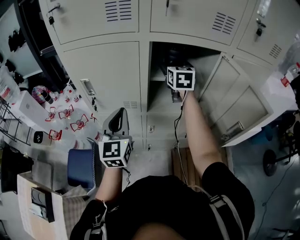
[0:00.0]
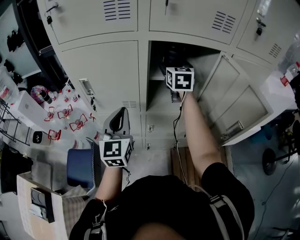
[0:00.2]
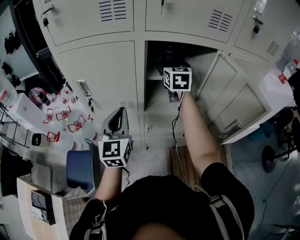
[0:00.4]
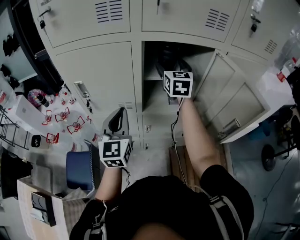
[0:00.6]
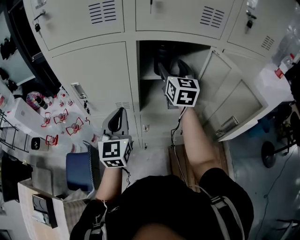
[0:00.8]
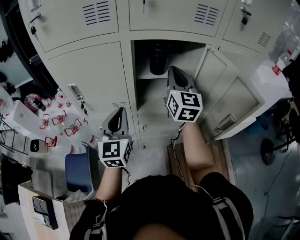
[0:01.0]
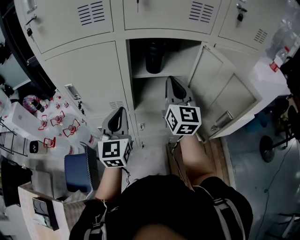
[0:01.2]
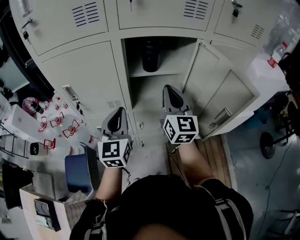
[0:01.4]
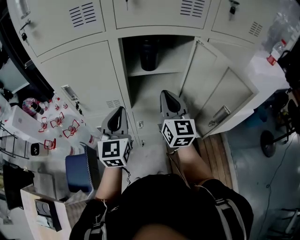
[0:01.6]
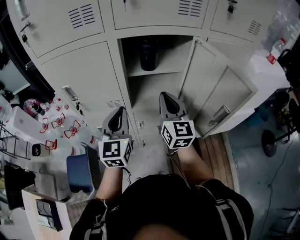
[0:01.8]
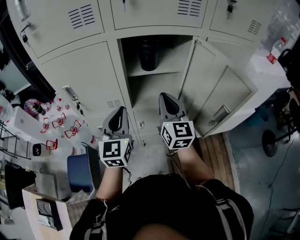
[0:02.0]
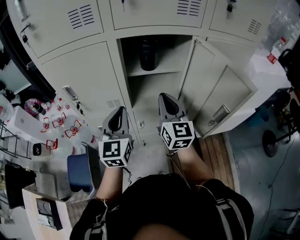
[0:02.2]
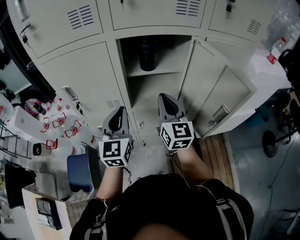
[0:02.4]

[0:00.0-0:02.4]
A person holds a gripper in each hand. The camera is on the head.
0:00.0 to 0:01.2: The right gripper heads backward, covering about 15 cm, swivels some 20 degrees, and closes its fingers. Meanwhile the left gripper moves to the right, some 5 cm.
0:01.2 to 0:02.4: The right gripper shifts some 10 cm downward and backward.

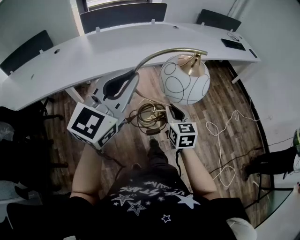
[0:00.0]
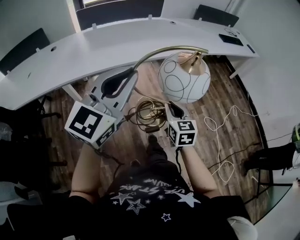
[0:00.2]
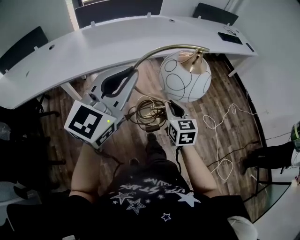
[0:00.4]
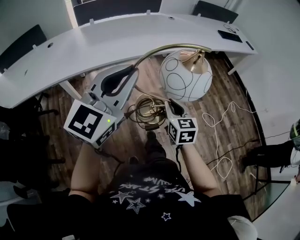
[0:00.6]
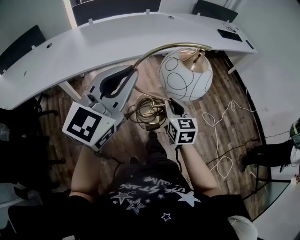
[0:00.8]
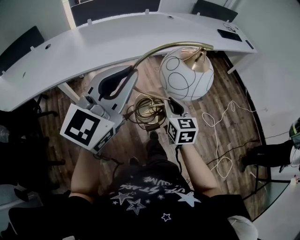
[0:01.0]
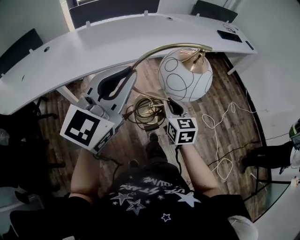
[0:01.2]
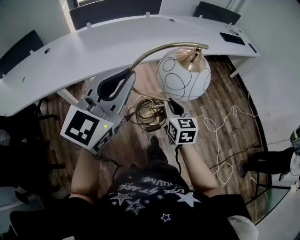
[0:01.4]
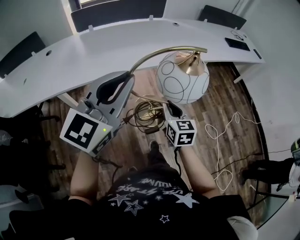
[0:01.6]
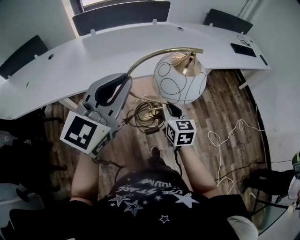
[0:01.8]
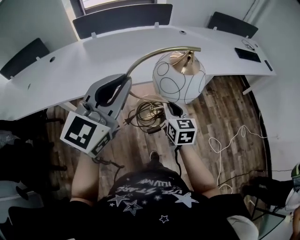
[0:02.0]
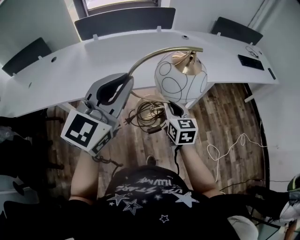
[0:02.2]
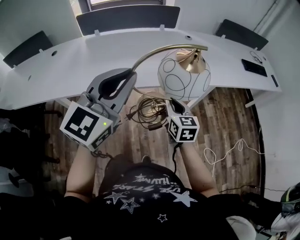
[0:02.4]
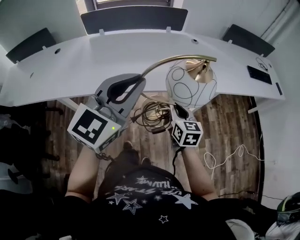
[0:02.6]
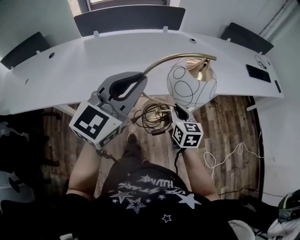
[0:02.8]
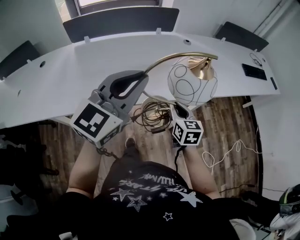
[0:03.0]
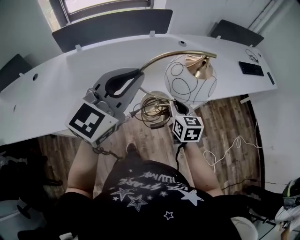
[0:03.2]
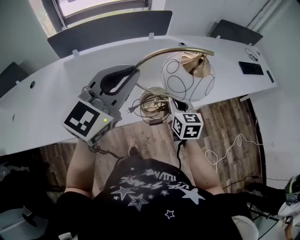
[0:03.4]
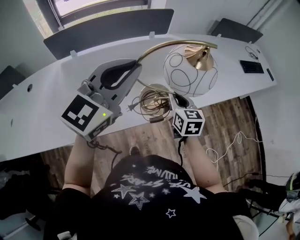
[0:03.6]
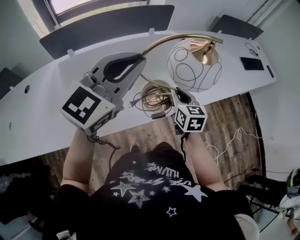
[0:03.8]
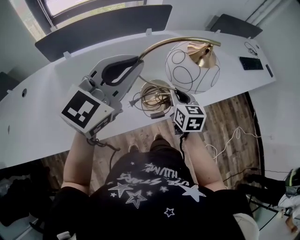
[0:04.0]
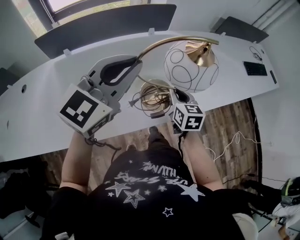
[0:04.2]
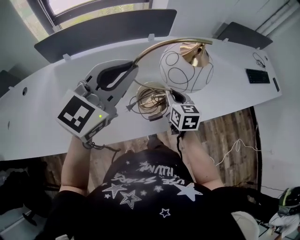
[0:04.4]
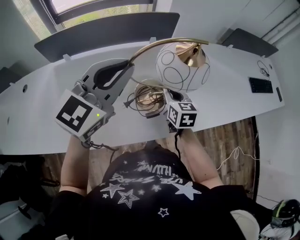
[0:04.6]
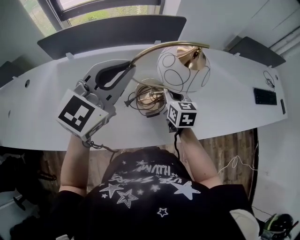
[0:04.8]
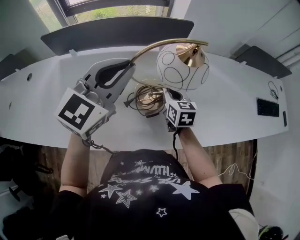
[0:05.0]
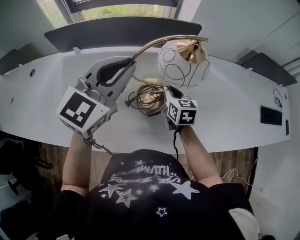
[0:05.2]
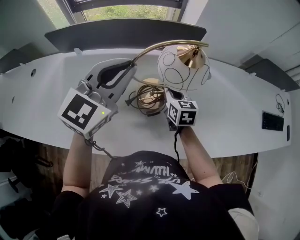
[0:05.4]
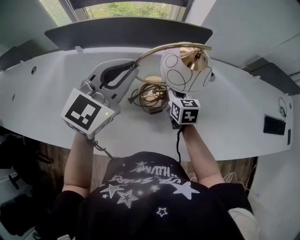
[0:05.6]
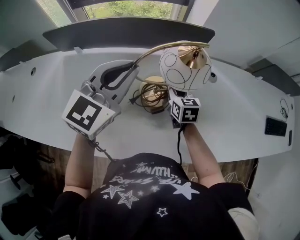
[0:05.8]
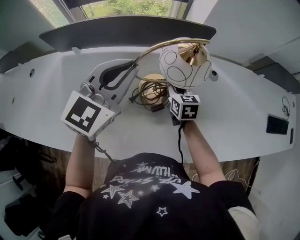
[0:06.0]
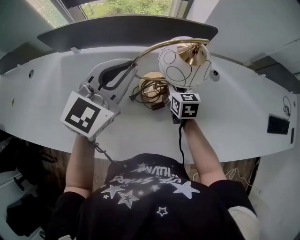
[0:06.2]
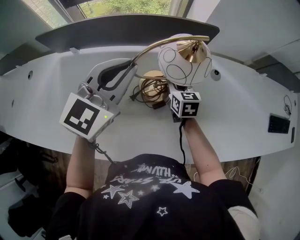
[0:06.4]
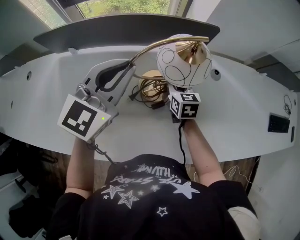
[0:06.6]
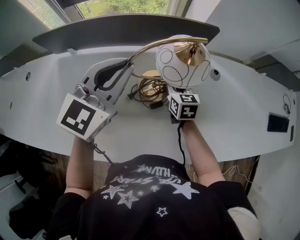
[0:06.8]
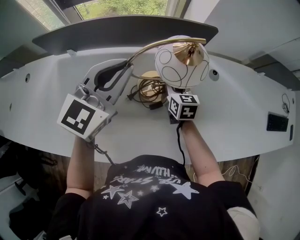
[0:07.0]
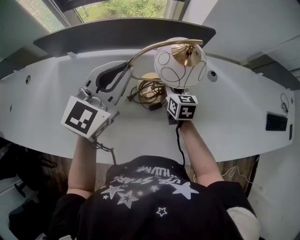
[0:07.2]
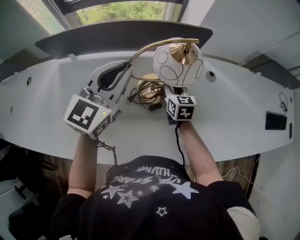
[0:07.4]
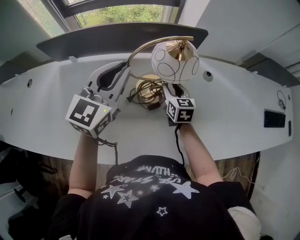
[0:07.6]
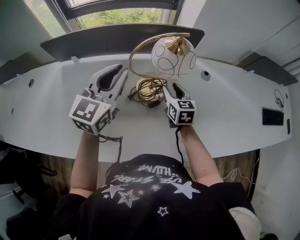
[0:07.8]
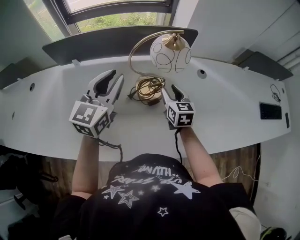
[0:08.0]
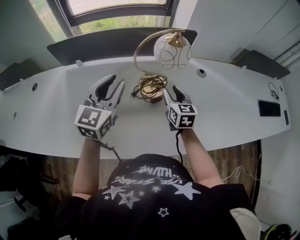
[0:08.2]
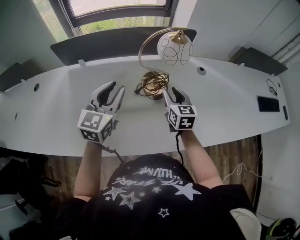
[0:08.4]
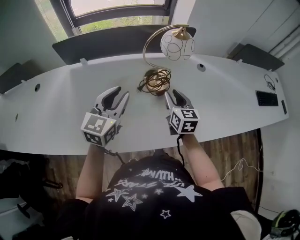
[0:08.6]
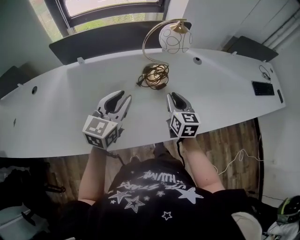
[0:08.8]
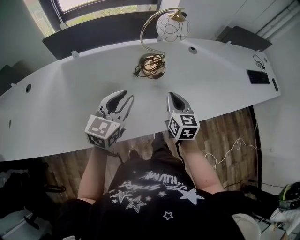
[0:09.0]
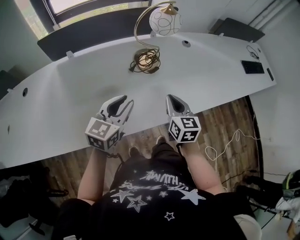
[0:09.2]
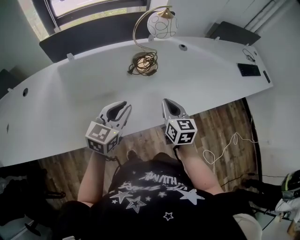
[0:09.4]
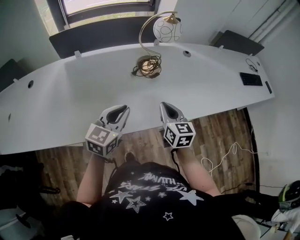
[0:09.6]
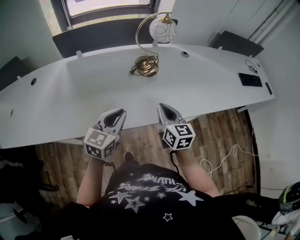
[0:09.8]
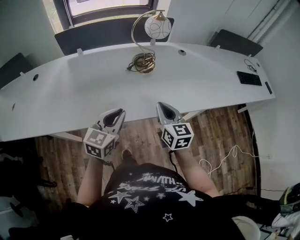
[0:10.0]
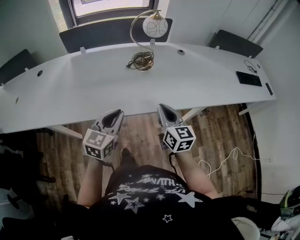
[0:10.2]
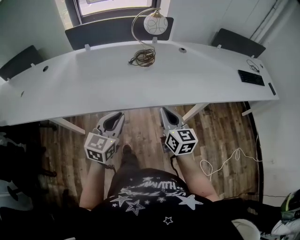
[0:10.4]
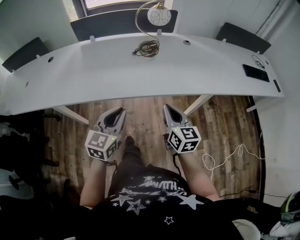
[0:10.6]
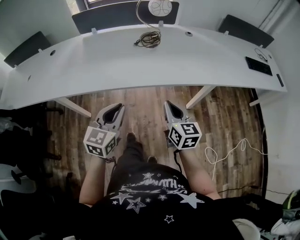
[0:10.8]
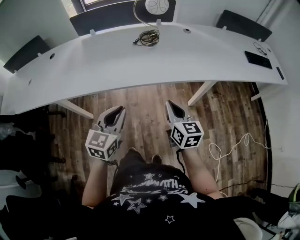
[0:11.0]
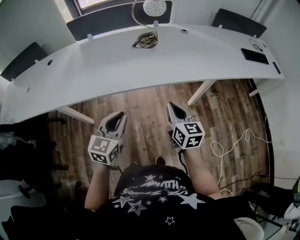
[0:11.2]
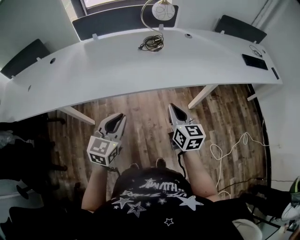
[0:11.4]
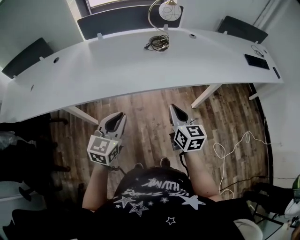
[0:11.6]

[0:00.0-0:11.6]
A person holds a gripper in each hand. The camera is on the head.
0:00.0 to 0:01.4: Both grippers travel together forward, approximately 5 cm.
0:01.4 to 0:02.8: Both grippers travel together forward, approximately 25 cm.
0:02.8 to 0:04.4: The right gripper goes about 30 cm forward; the left gripper shifts roughly 30 cm forward and to the left.
0:04.4 to 0:05.8: The left gripper rotates approximately 30 degrees, while the right gripper rotates about 30 degrees.
0:05.8 to 0:07.2: The grippers stay close to where they were, moving slightly.
0:07.2 to 0:08.8: The left gripper heads backward and downward, covering some 20 cm, while the right gripper moves backward, some 20 cm.
0:08.8 to 0:10.2: The right gripper is displaced backward by approximately 25 cm. The left gripper heads backward and to the right, covering approximately 25 cm.
0:10.2 to 0:11.6: Both grippers move backward and to the left, some 15 cm.

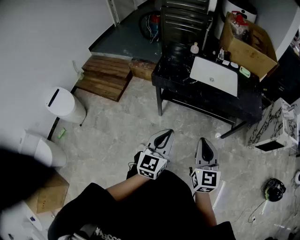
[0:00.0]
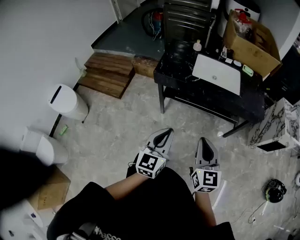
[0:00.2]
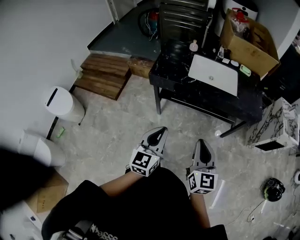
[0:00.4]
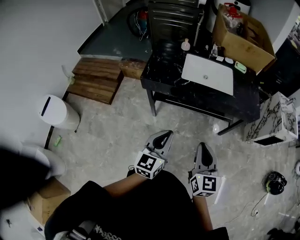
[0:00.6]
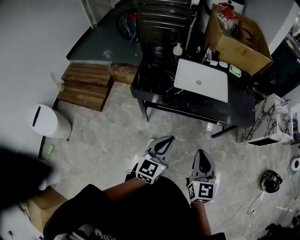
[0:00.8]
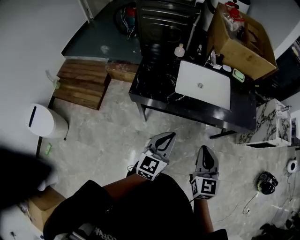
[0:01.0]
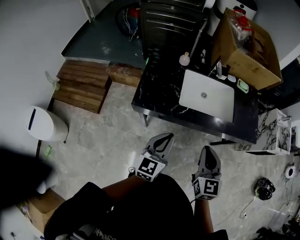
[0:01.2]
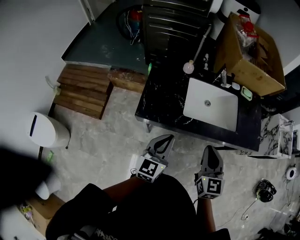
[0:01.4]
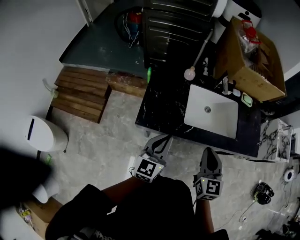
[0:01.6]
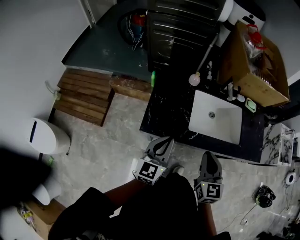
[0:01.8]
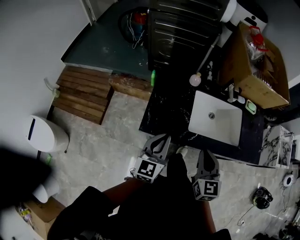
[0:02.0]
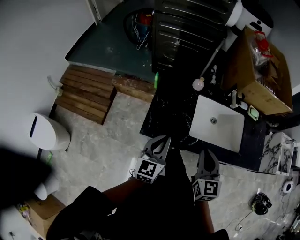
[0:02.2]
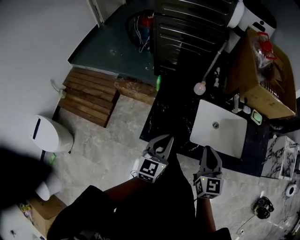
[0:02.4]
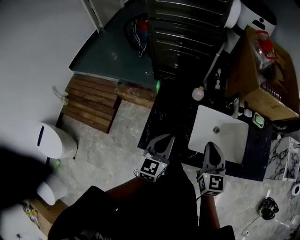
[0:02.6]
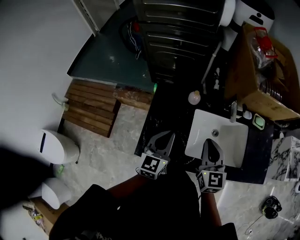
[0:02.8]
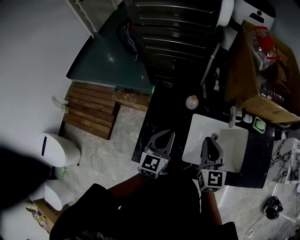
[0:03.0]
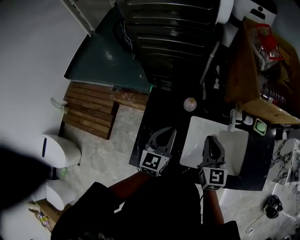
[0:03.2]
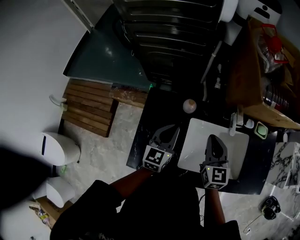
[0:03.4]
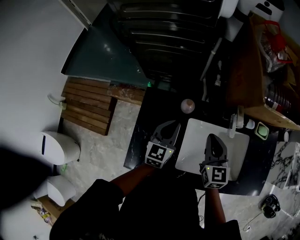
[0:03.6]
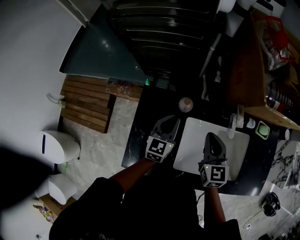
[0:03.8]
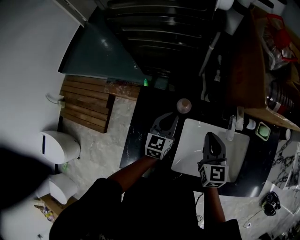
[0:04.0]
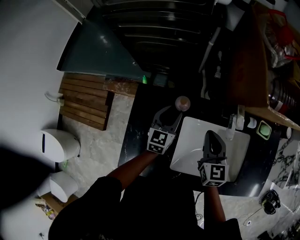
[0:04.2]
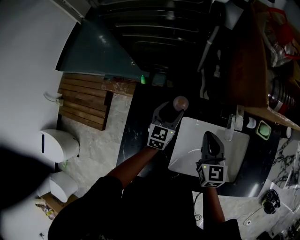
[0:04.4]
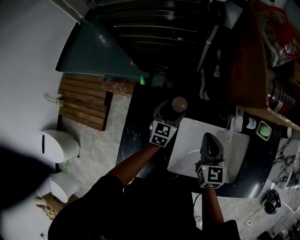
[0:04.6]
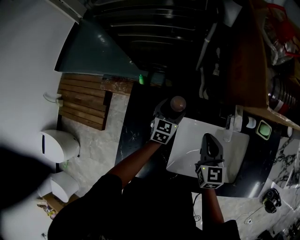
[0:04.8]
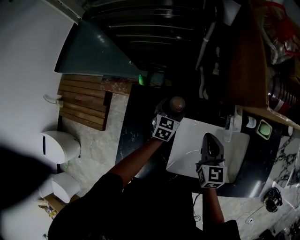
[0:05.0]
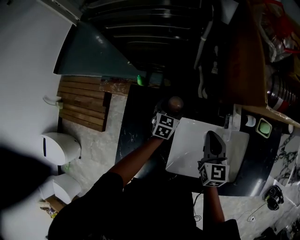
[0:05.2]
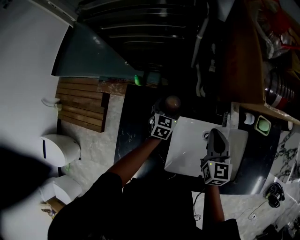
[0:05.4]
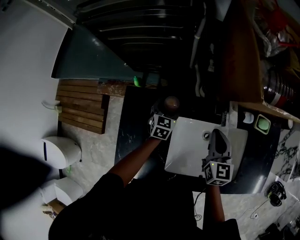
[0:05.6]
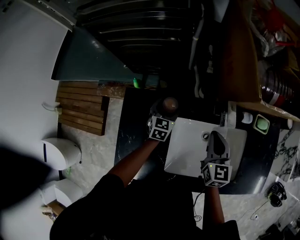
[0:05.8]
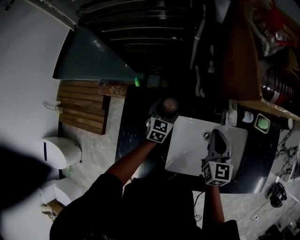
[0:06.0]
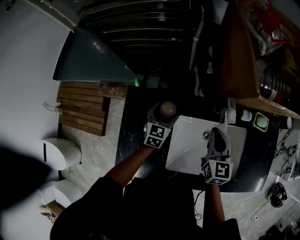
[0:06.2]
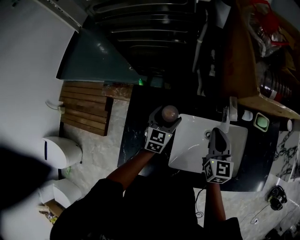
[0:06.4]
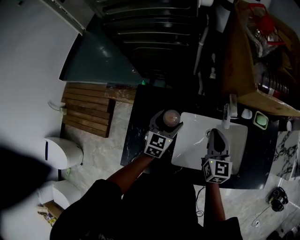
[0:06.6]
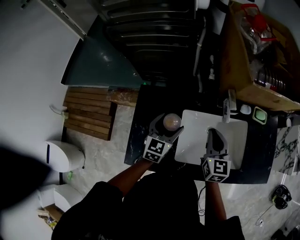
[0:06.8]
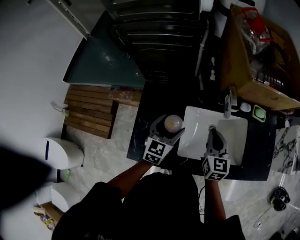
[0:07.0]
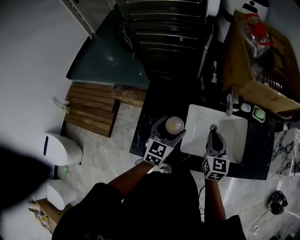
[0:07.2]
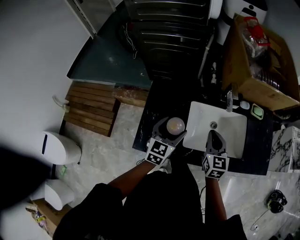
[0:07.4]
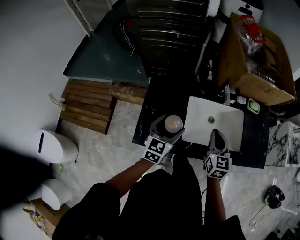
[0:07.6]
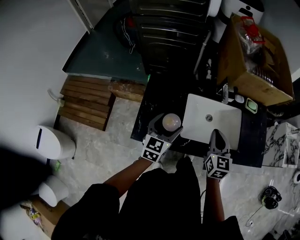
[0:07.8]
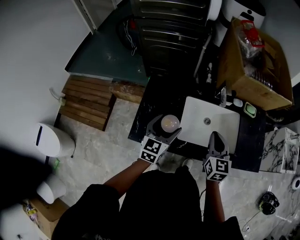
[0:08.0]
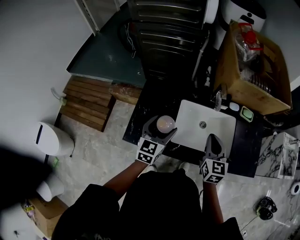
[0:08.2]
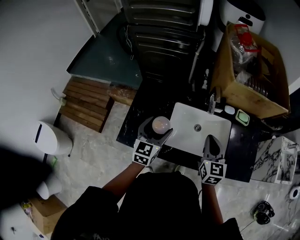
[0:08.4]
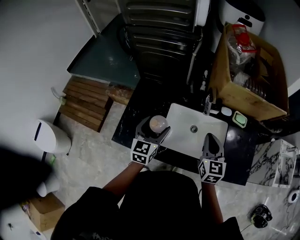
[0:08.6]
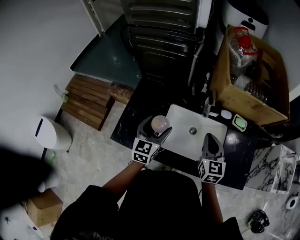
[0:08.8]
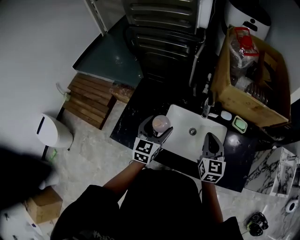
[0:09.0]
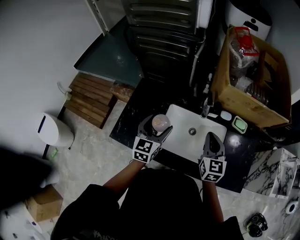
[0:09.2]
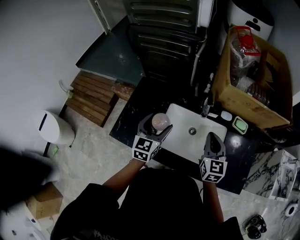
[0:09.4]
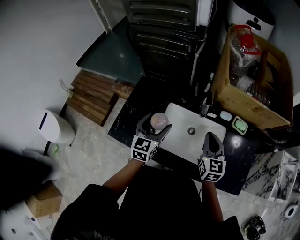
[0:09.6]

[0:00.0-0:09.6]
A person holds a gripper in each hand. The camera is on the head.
0:00.0 to 0:01.6: Both grippers move forward, approximately 35 cm.
0:01.6 to 0:03.2: Both grippers travel together forward, approximately 30 cm.
0:03.2 to 0:04.8: The left gripper heads downward and forward, covering approximately 25 cm, and opens its fingers, while the right gripper shifts about 15 cm downward and forward.
0:04.8 to 0:06.4: The left gripper heads backward, covering approximately 5 cm. Meanwhile the right gripper ends up about 5 cm from where it was.
0:06.4 to 0:08.0: The left gripper travels backward and upward by approximately 30 cm. The right gripper goes some 20 cm backward.
0:08.0 to 0:09.6: The two grippers go roughly 15 cm to the right and forward.
